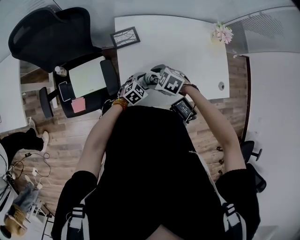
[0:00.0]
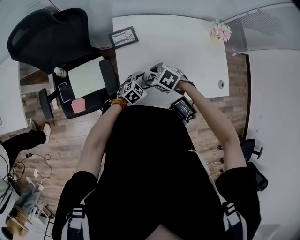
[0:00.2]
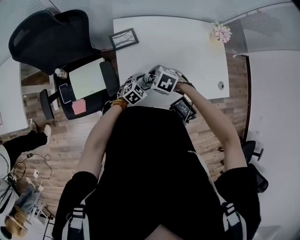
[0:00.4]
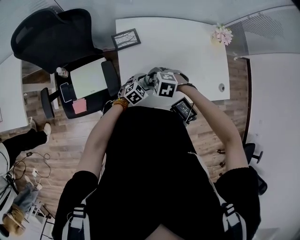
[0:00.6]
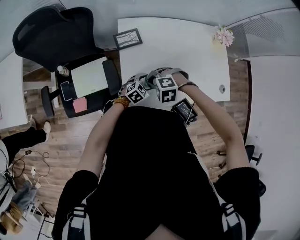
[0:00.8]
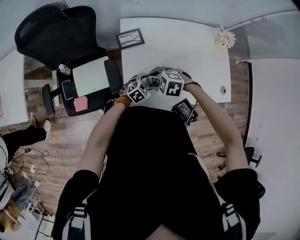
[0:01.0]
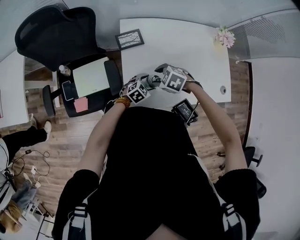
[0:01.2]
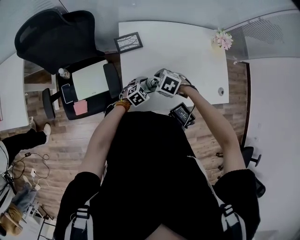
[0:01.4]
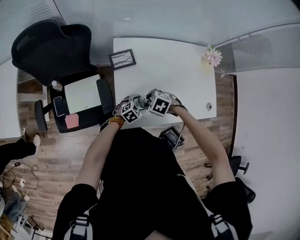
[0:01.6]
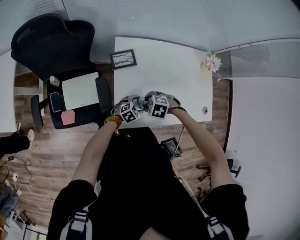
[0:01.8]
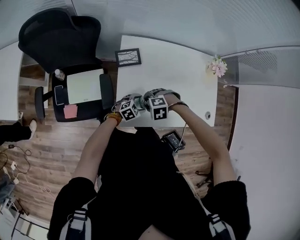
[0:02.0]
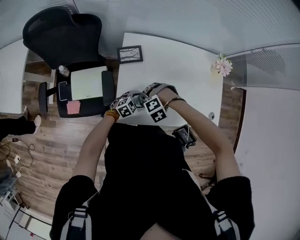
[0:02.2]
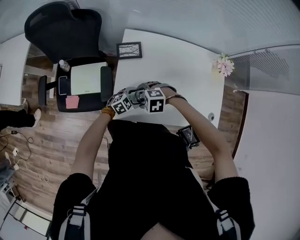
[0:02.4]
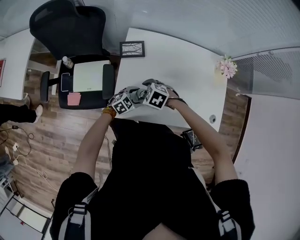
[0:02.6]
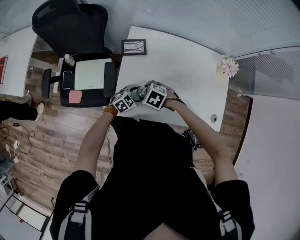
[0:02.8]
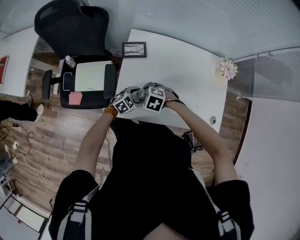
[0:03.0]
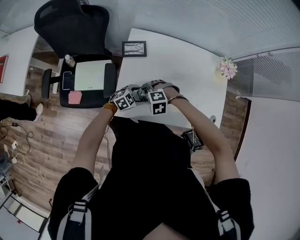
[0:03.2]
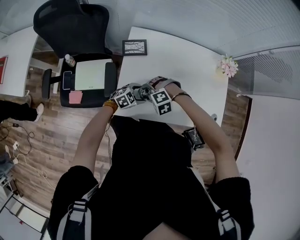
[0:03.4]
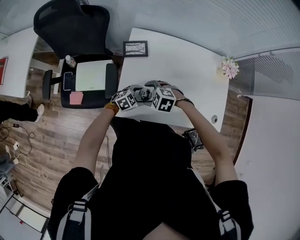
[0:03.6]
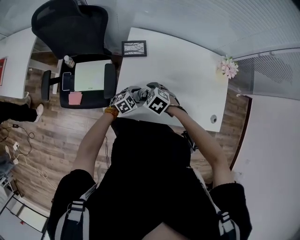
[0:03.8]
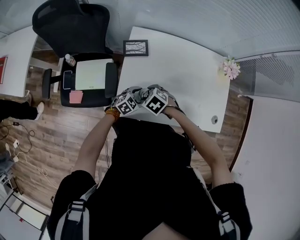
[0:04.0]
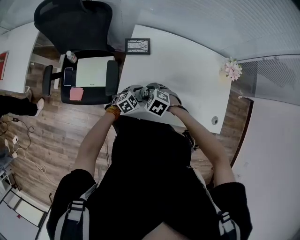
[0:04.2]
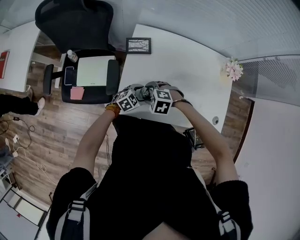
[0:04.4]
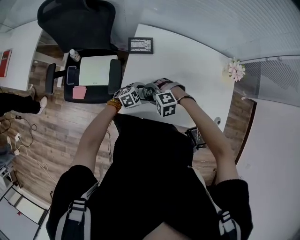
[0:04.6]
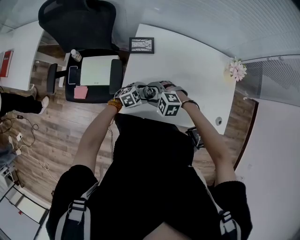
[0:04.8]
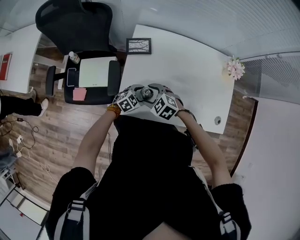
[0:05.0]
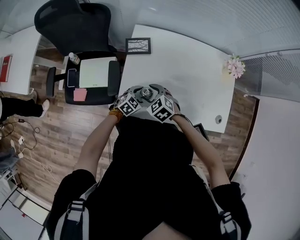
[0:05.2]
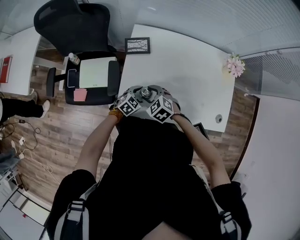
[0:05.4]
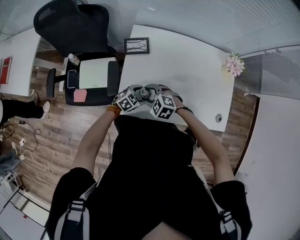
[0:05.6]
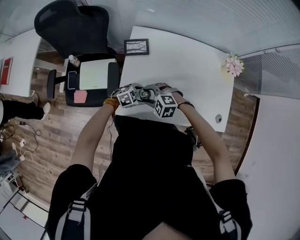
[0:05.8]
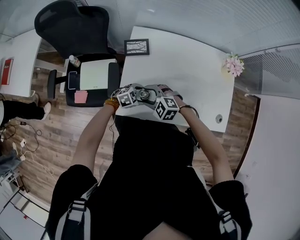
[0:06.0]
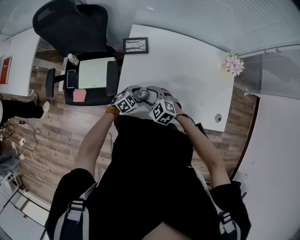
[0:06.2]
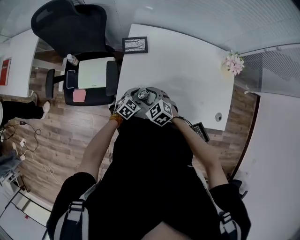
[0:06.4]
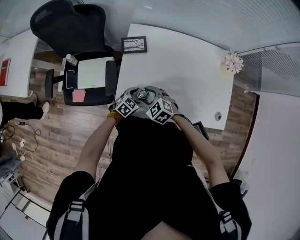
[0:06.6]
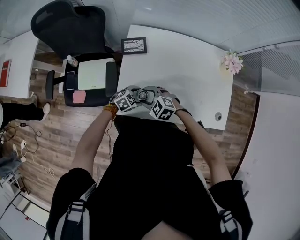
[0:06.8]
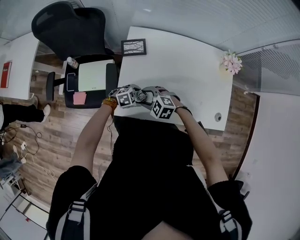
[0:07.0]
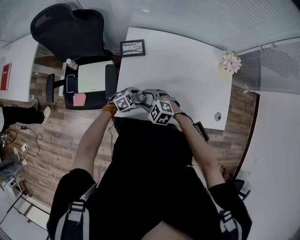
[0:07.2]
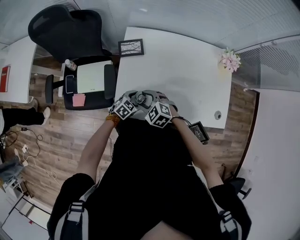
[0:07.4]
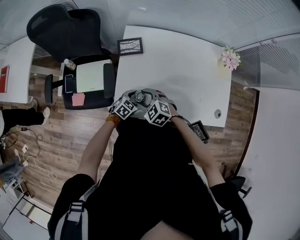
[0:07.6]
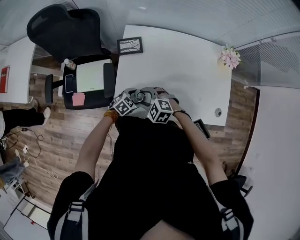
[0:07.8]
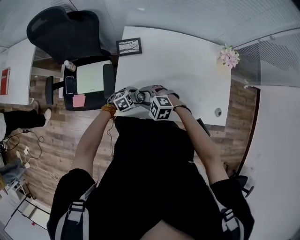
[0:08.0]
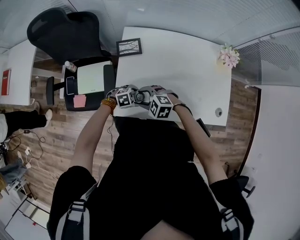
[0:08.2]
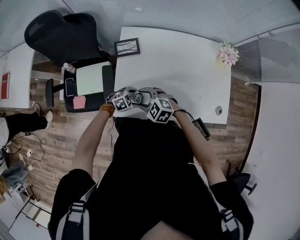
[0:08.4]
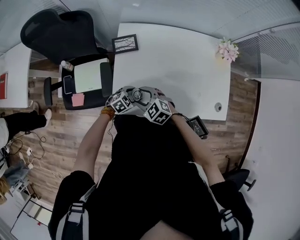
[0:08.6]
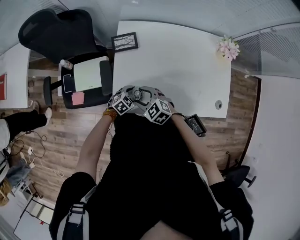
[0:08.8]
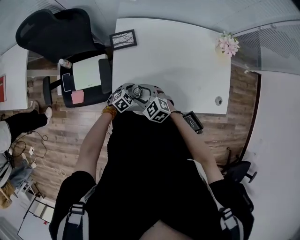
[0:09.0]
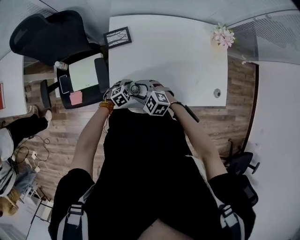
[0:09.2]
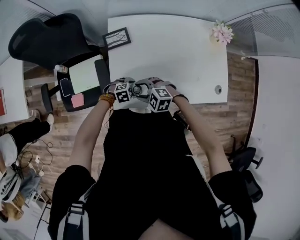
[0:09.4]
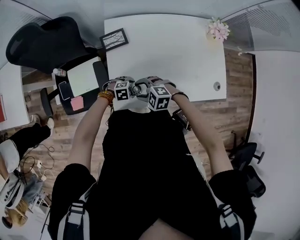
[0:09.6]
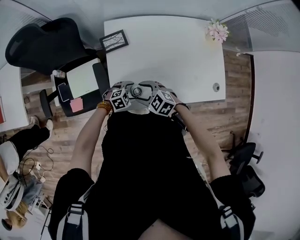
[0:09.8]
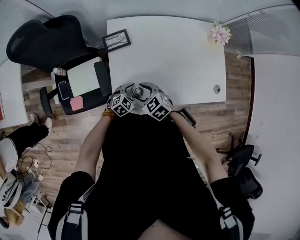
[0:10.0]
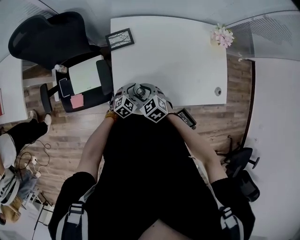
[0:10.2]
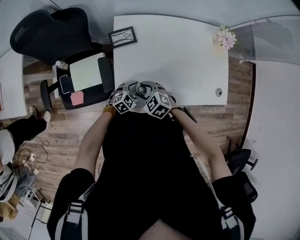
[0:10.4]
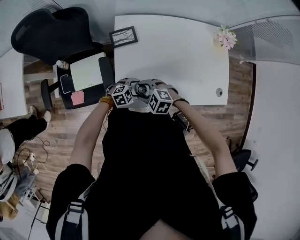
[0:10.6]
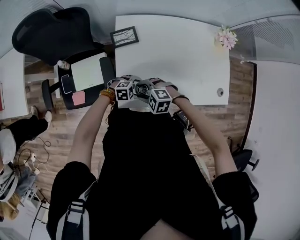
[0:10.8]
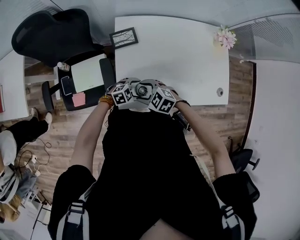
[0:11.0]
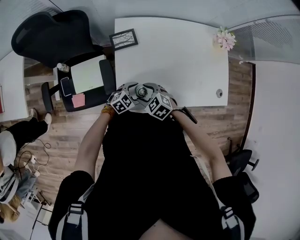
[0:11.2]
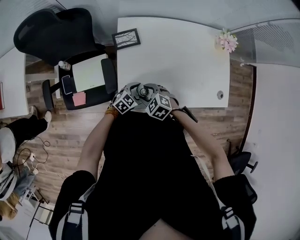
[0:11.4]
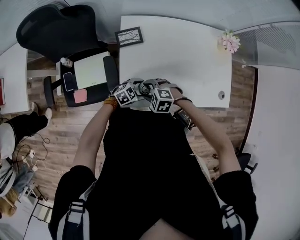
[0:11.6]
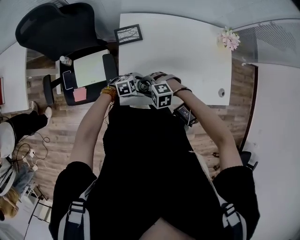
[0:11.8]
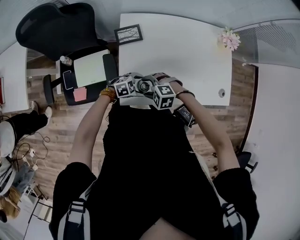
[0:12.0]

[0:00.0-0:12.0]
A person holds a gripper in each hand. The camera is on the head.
0:00.0 to 0:01.6: The right gripper closes, then reopens.
0:01.6 to 0:03.0: The right gripper swivels some 20 degrees.
0:04.4 to 0:06.0: The right gripper changes its angle by about 20 degrees.
0:06.0 to 0:07.6: The left gripper swivels some 20 degrees.
0:10.4 to 0:12.0: The right gripper changes its angle by roughly 30 degrees. Meanwhile the left gripper swivels approximately 20 degrees.

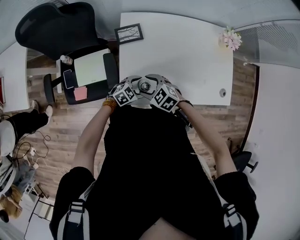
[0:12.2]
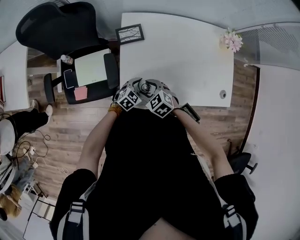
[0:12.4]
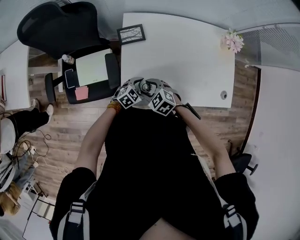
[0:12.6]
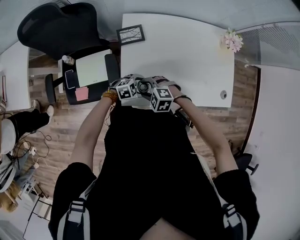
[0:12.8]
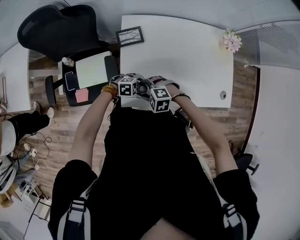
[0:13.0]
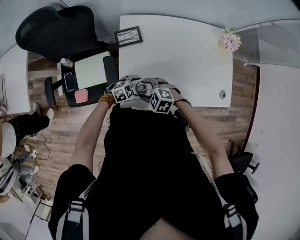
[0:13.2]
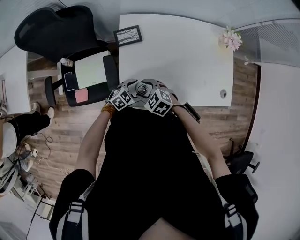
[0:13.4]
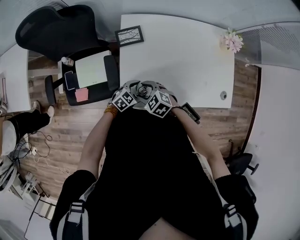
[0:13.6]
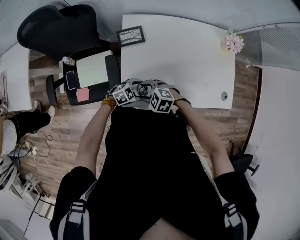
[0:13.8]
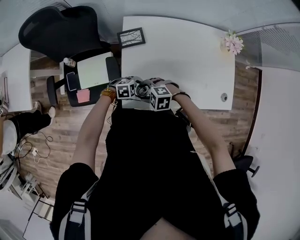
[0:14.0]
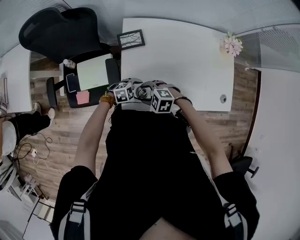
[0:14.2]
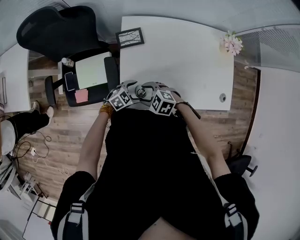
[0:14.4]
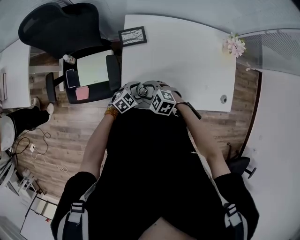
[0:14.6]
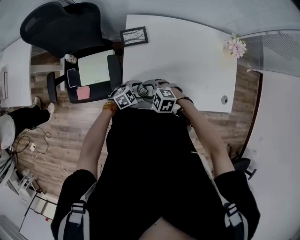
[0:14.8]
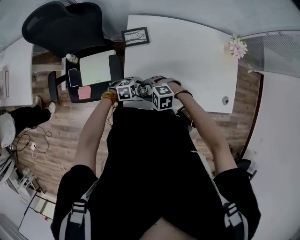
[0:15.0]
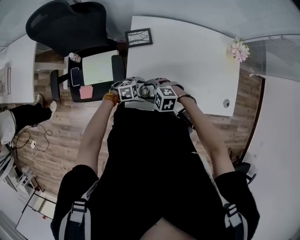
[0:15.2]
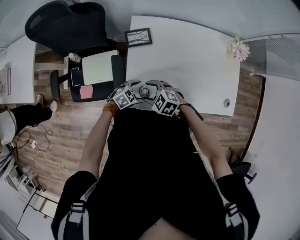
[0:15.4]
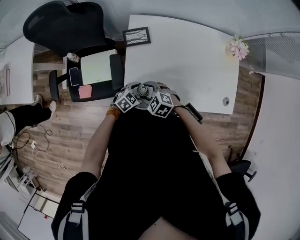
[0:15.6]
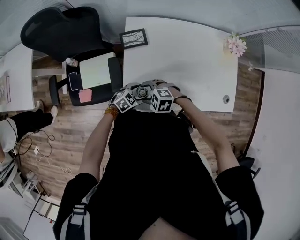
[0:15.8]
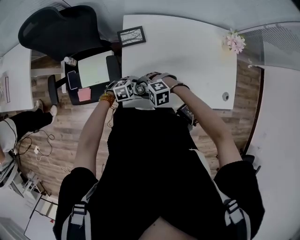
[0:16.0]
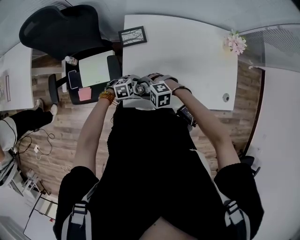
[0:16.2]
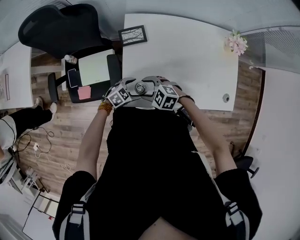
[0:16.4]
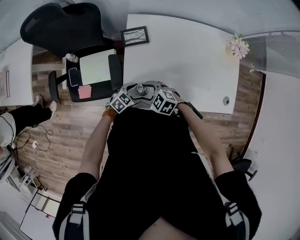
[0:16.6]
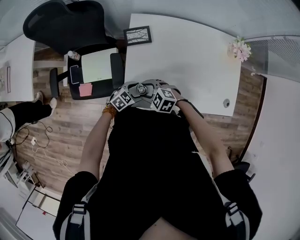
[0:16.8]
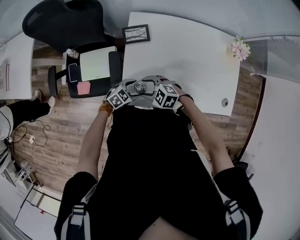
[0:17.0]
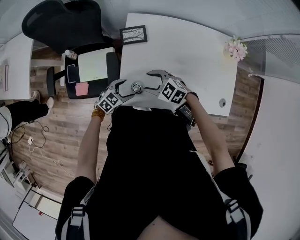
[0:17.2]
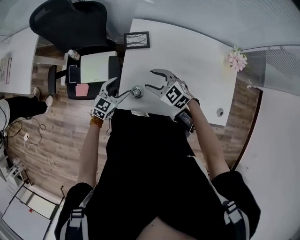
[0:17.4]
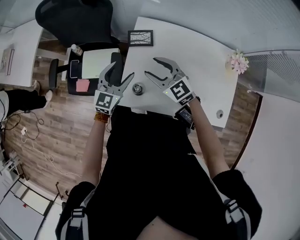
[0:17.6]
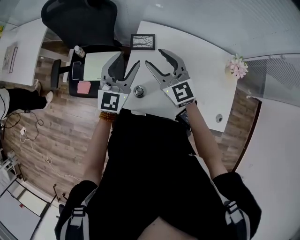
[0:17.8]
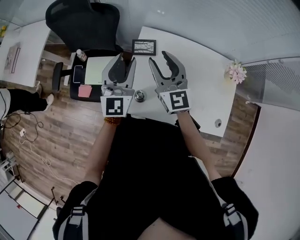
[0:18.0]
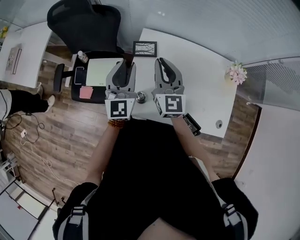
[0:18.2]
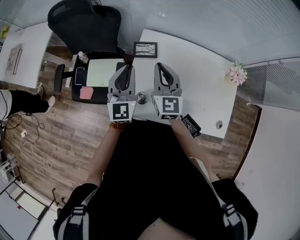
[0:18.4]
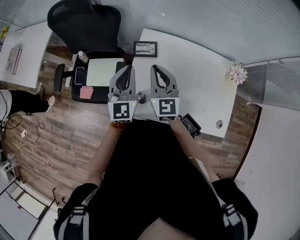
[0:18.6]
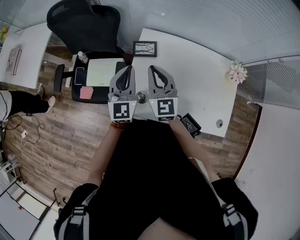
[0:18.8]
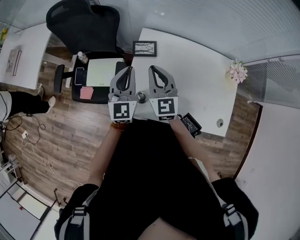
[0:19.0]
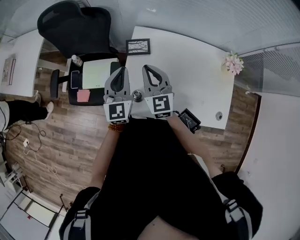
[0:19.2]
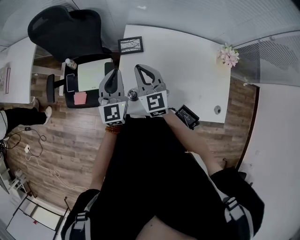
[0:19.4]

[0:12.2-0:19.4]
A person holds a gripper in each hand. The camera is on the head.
0:13.6 to 0:15.0: The right gripper turns by some 40 degrees, while the left gripper changes its angle by some 30 degrees.
0:15.0 to 0:16.6: The left gripper rotates about 30 degrees. The right gripper changes its angle by approximately 30 degrees.
0:16.6 to 0:18.0: Both grippers move upward, approximately 30 cm. The left gripper points its fingers roughly 50 degrees further upward, and closes; the right gripper angles its fingers upward, by approximately 50 degrees.
0:18.0 to 0:19.4: The grippers both shift downward by some 10 cm. The right gripper closes up.

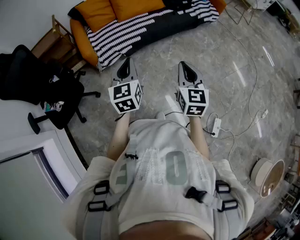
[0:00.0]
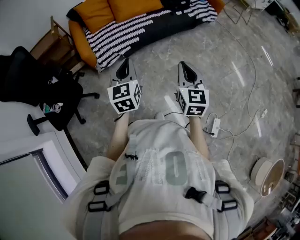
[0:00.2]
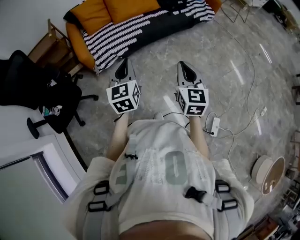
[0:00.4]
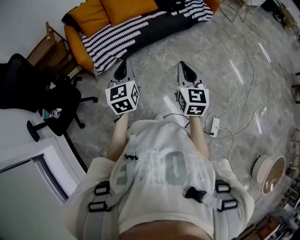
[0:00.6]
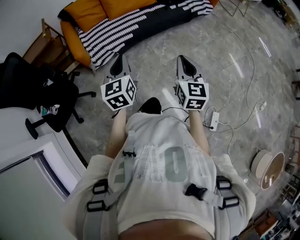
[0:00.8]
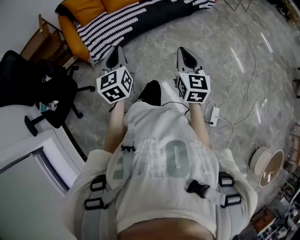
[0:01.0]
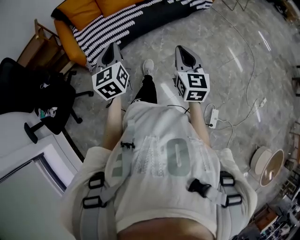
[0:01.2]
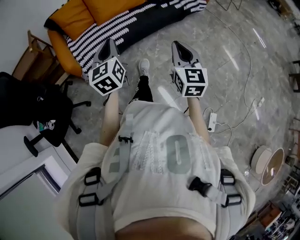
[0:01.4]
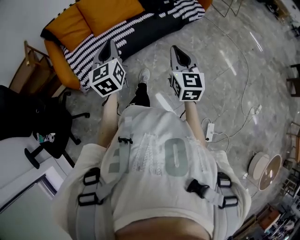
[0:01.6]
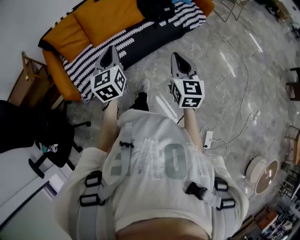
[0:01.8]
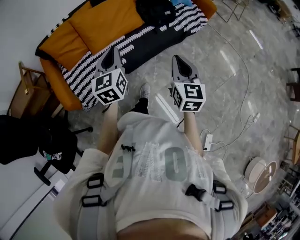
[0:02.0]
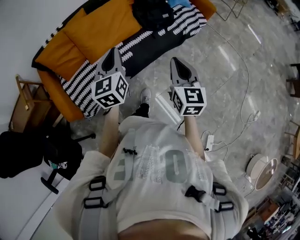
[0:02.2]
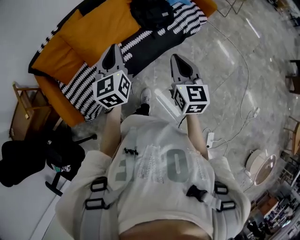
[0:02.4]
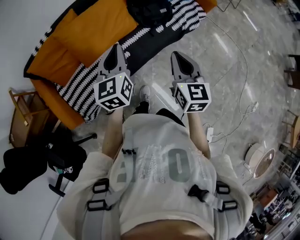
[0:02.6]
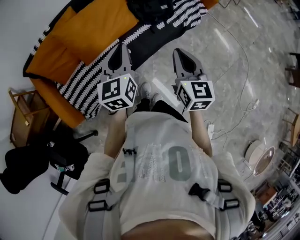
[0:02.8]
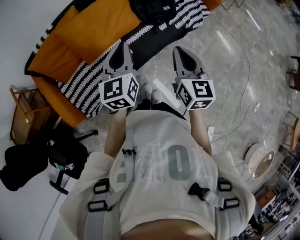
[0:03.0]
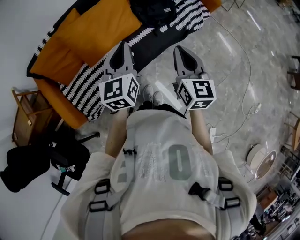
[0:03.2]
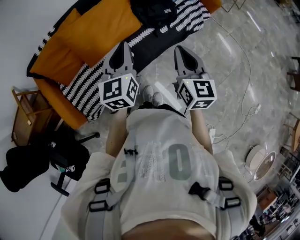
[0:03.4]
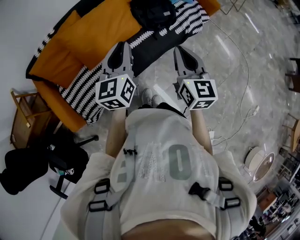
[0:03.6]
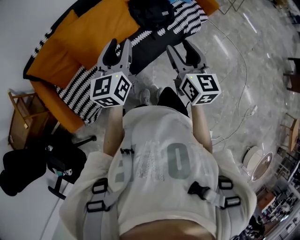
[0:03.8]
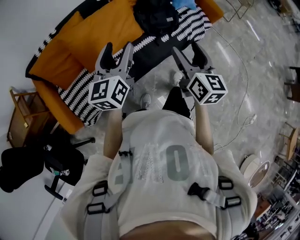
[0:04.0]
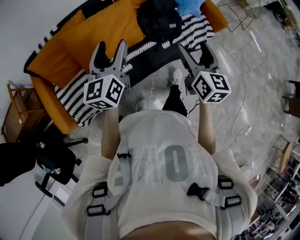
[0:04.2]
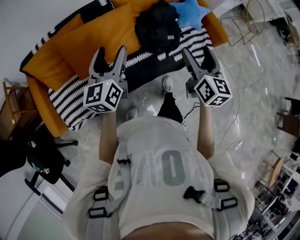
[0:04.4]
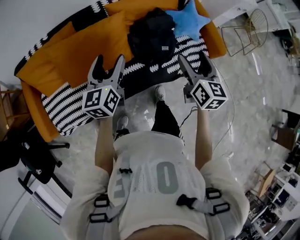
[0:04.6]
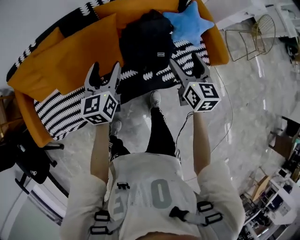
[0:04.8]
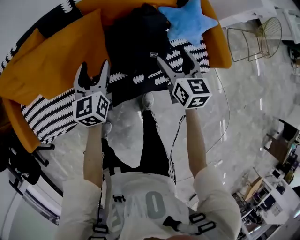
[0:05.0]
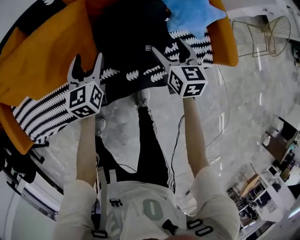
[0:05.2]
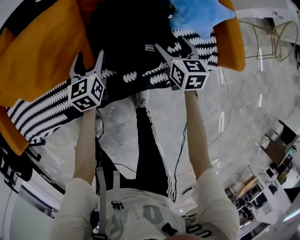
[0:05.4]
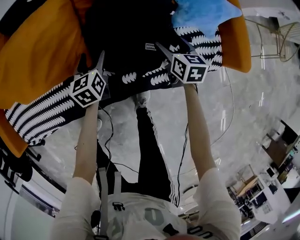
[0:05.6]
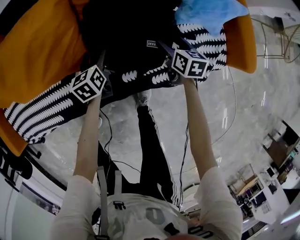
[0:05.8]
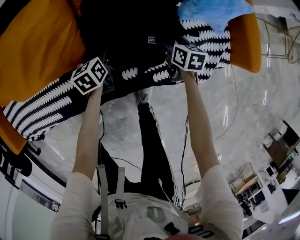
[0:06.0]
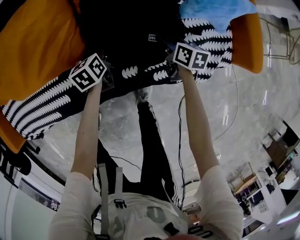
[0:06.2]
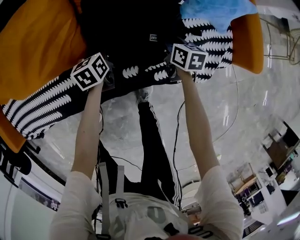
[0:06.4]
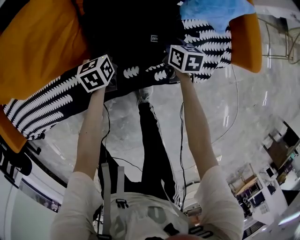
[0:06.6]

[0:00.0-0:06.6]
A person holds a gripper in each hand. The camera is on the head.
0:00.0 to 0:01.6: Both grippers travel together forward, some 25 cm.
0:01.6 to 0:03.2: The grippers both shift forward by about 35 cm.
0:03.2 to 0:05.0: The left gripper shifts some 40 cm forward and downward, rotates approximately 20 degrees, and opens its fingers, while the right gripper shifts roughly 50 cm forward, downward and to the right, turns by approximately 30 degrees, and opens.
0:05.0 to 0:06.6: The two grippers go about 35 cm downward. The left gripper turns by approximately 30 degrees, and closes up. Meanwhile the right gripper turns by approximately 30 degrees, and closes its fingers.
